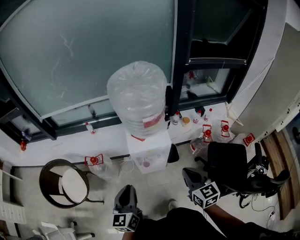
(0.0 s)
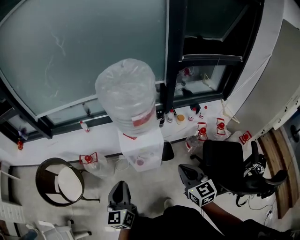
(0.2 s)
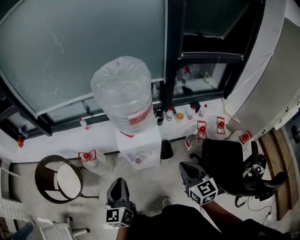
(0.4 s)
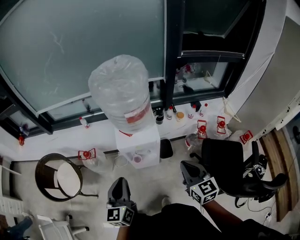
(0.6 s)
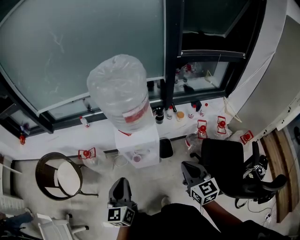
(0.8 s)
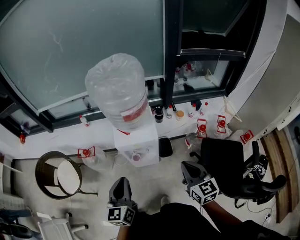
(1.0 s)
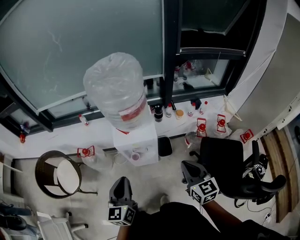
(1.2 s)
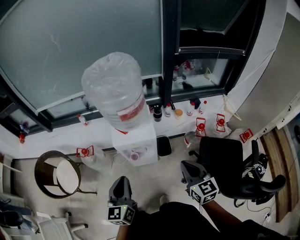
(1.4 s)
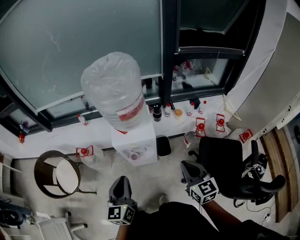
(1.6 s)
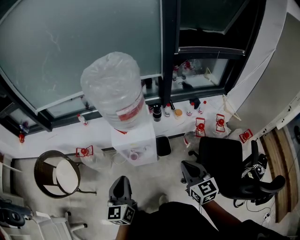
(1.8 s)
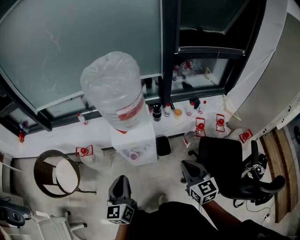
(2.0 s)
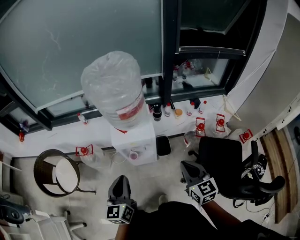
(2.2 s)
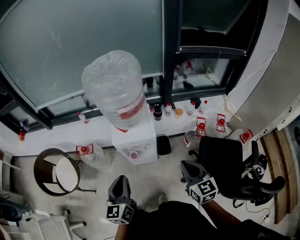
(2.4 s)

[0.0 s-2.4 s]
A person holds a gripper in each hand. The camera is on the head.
0.0 to 1.2 s: The grippers both shift to the right by some 10 cm.
1.2 to 2.4 s: Both grippers stay about where they are.

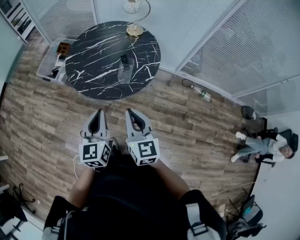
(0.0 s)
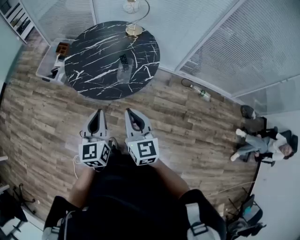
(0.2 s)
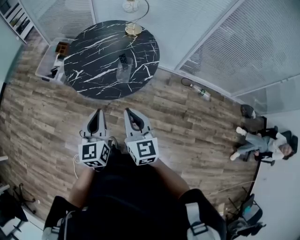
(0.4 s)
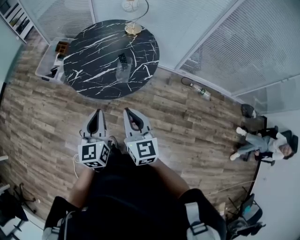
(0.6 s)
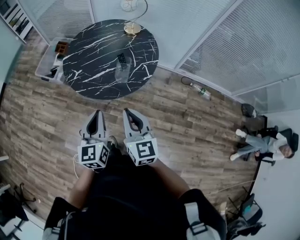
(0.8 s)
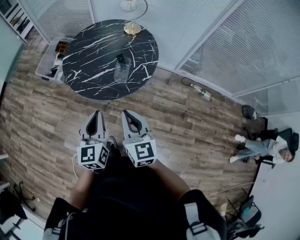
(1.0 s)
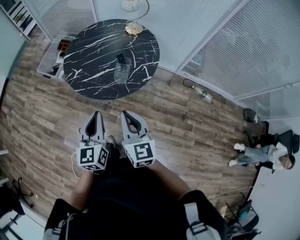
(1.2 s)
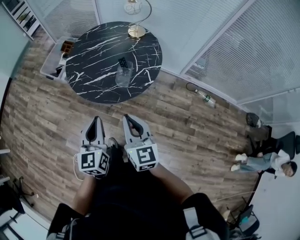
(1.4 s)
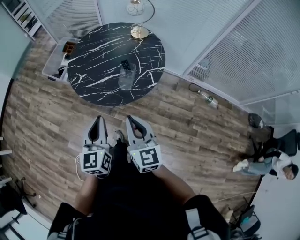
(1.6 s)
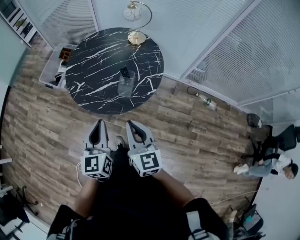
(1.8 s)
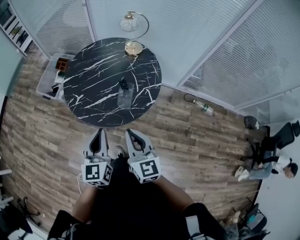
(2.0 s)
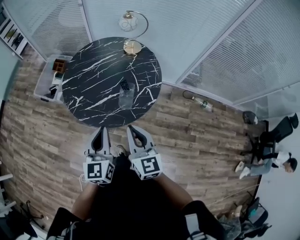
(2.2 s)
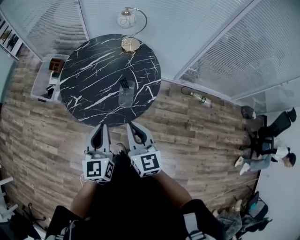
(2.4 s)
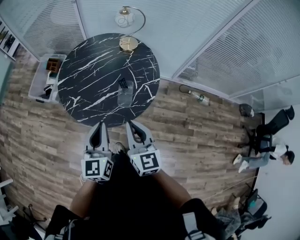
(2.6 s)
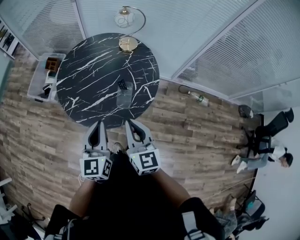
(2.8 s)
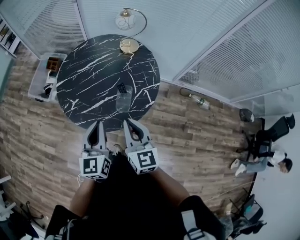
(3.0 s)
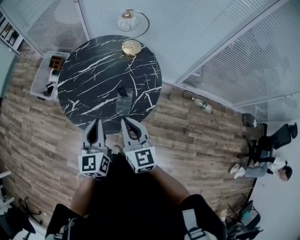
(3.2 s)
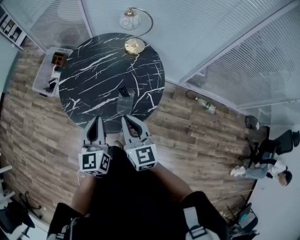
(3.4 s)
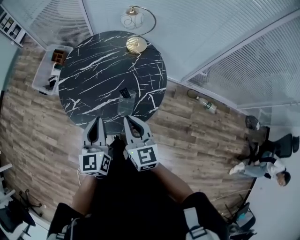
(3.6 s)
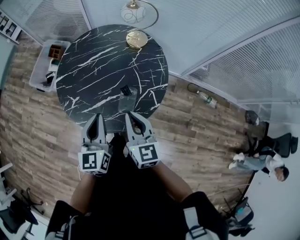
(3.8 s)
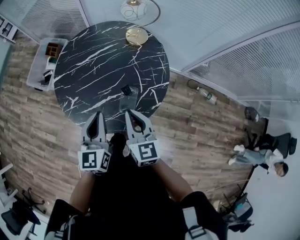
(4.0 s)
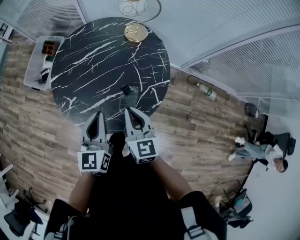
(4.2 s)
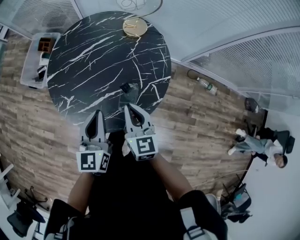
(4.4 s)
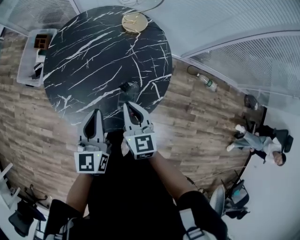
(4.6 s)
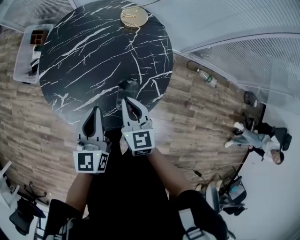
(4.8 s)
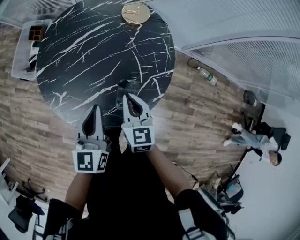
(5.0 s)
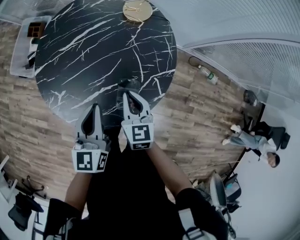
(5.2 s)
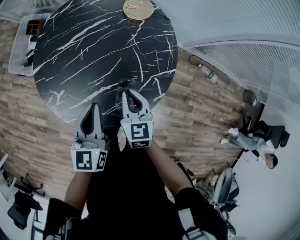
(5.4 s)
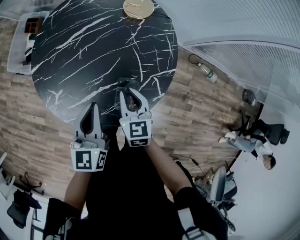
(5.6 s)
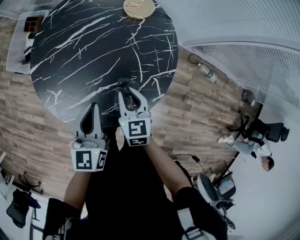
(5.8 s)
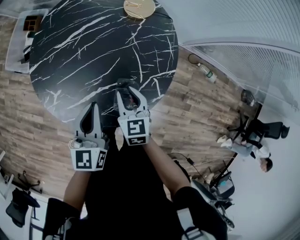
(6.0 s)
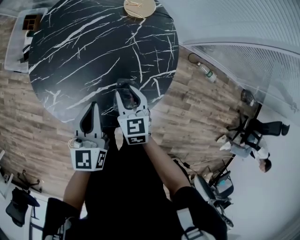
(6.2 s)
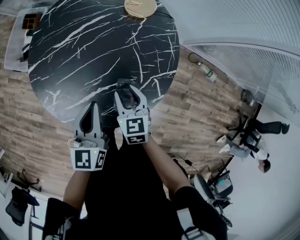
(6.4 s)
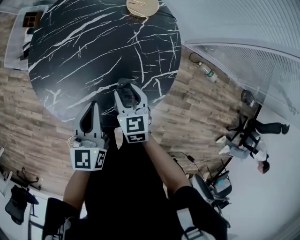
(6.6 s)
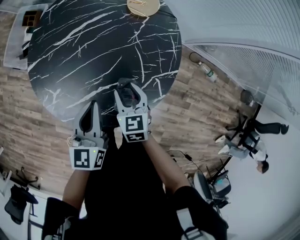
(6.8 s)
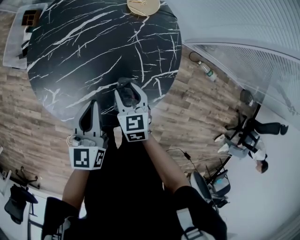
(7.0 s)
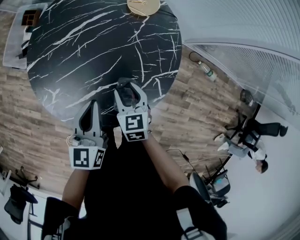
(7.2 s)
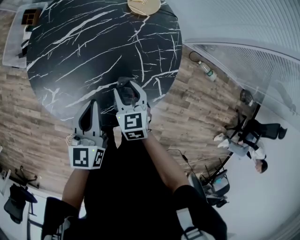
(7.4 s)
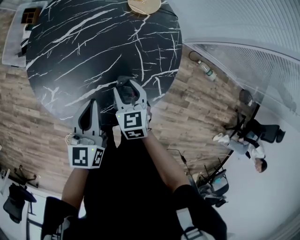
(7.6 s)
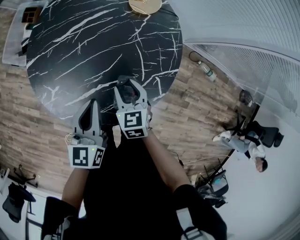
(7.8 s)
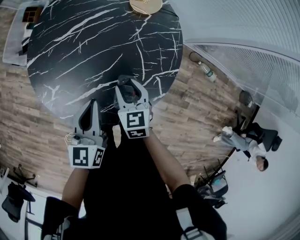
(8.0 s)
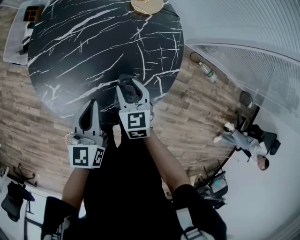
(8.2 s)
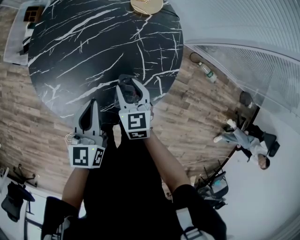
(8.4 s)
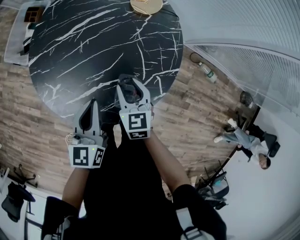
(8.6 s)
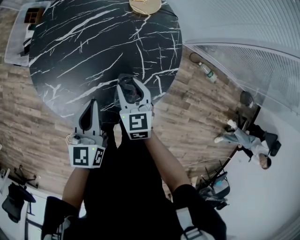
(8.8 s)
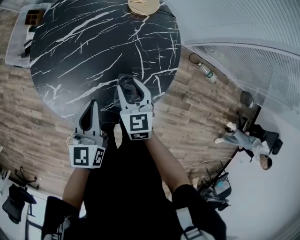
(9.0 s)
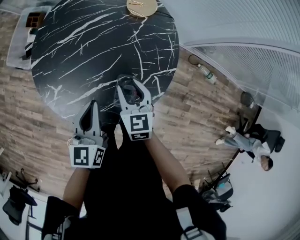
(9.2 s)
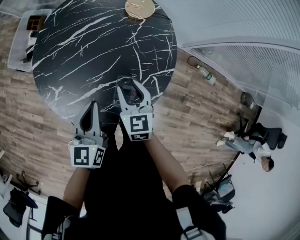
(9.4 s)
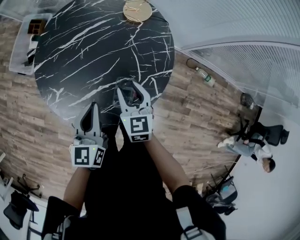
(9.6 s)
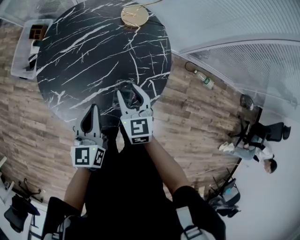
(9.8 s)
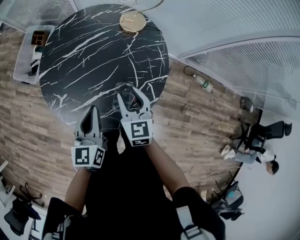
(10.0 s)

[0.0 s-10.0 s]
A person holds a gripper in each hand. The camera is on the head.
0.0 to 1.4 s: The grippers move only a little.
1.4 to 2.8 s: Both grippers travel together forward, roughly 15 cm.
2.8 to 4.2 s: The left gripper goes some 15 cm forward; the right gripper heads forward and downward, covering about 20 cm.
4.2 to 5.8 s: The grippers both shift downward and forward by roughly 15 cm. The right gripper rotates approximately 20 degrees.
5.8 to 7.2 s: The right gripper opens its fingers.
7.2 to 8.6 s: The grippers stay close to where they were, moving slightly.
8.6 to 10.0 s: The left gripper goes about 5 cm upward. Meanwhile the right gripper heads upward, covering about 10 cm.

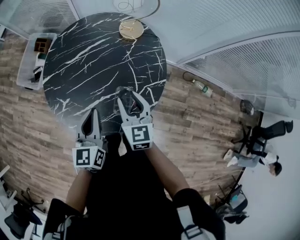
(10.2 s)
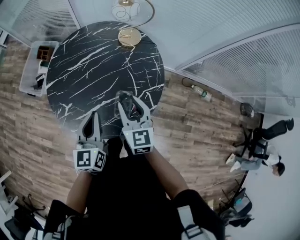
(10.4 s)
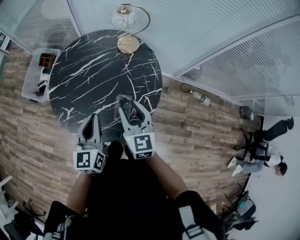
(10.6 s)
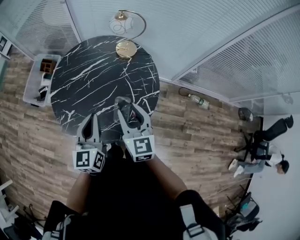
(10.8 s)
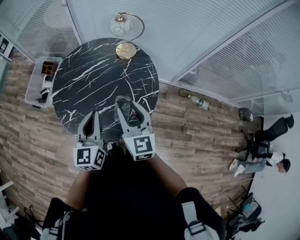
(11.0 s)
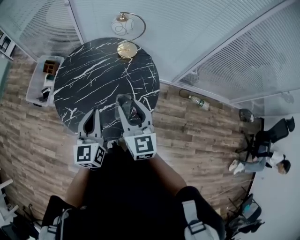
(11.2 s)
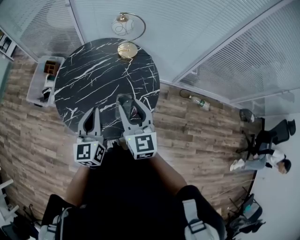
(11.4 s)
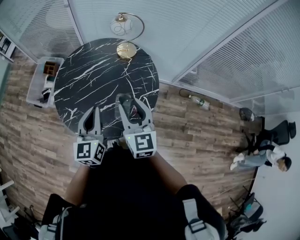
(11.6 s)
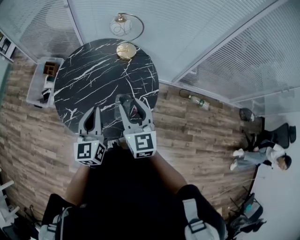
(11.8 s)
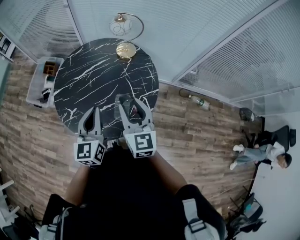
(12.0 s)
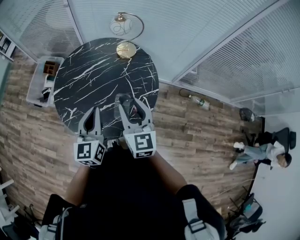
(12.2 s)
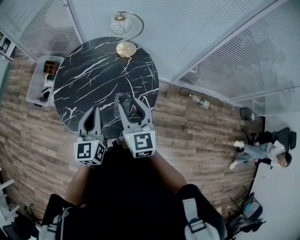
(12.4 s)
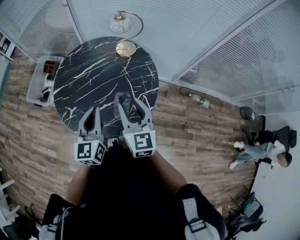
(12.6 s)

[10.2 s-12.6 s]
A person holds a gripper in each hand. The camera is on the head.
10.2 to 11.4 s: The right gripper heads upward and backward, covering some 15 cm, while the left gripper travels upward by roughly 10 cm.
11.4 to 12.6 s: Both grippers stay about where they are.

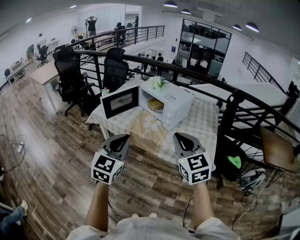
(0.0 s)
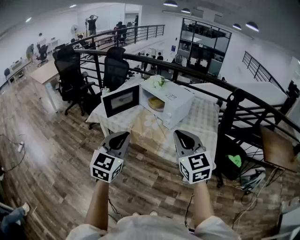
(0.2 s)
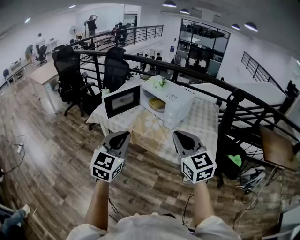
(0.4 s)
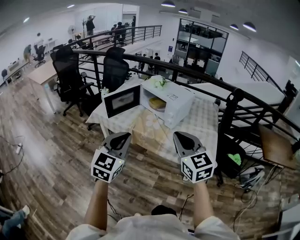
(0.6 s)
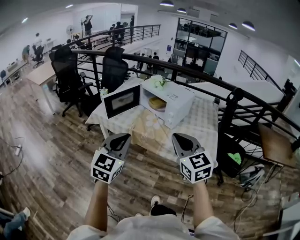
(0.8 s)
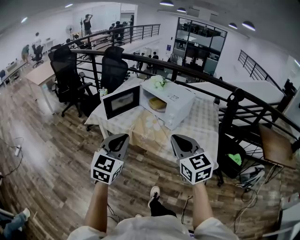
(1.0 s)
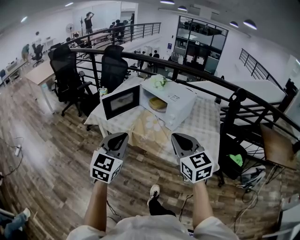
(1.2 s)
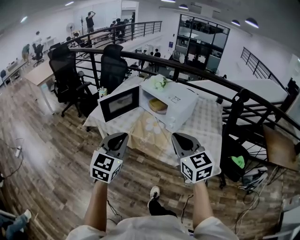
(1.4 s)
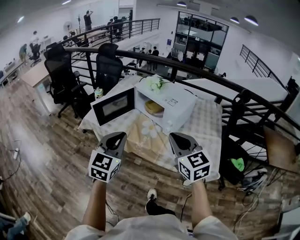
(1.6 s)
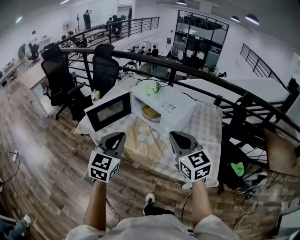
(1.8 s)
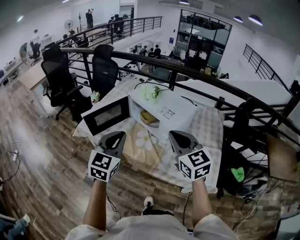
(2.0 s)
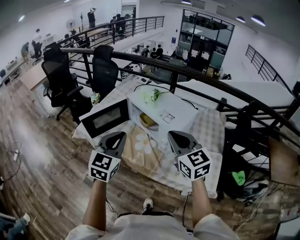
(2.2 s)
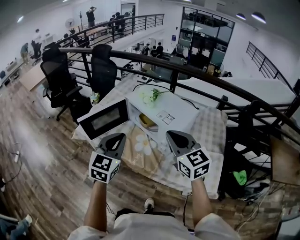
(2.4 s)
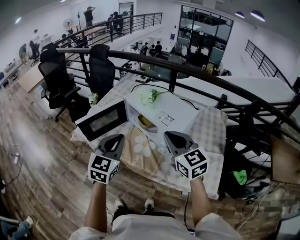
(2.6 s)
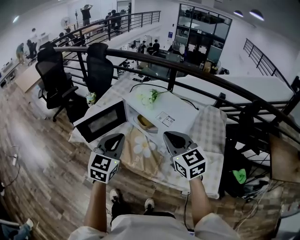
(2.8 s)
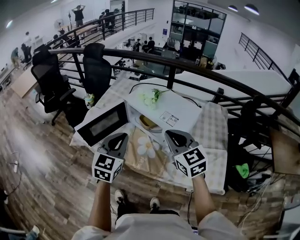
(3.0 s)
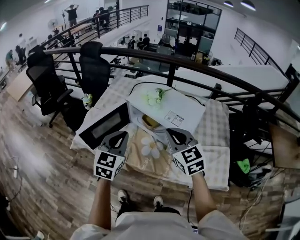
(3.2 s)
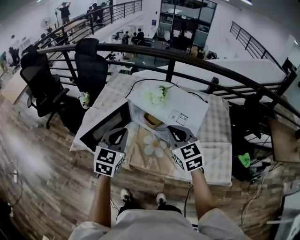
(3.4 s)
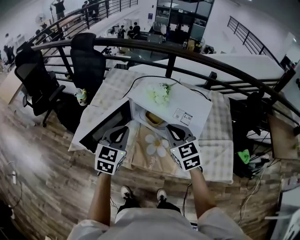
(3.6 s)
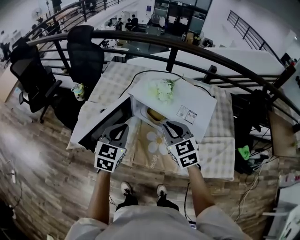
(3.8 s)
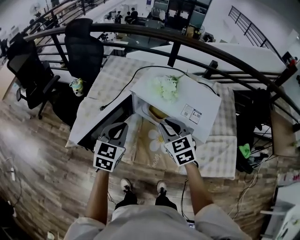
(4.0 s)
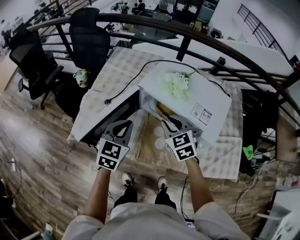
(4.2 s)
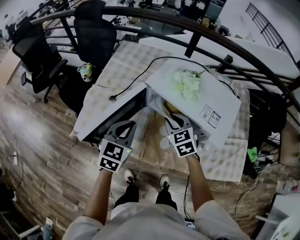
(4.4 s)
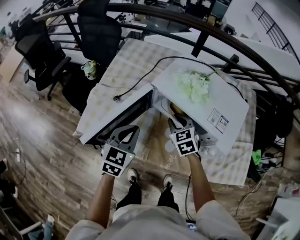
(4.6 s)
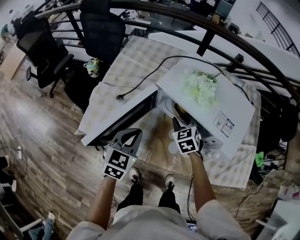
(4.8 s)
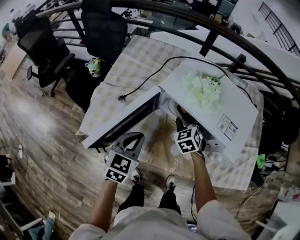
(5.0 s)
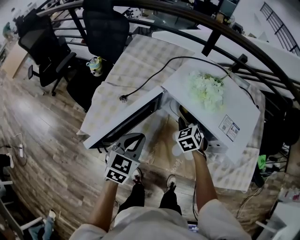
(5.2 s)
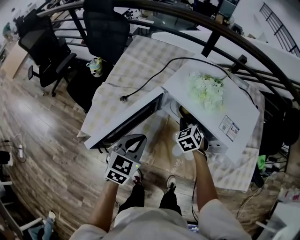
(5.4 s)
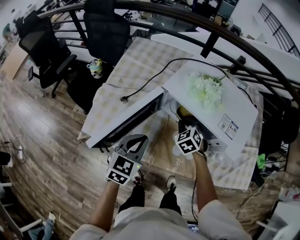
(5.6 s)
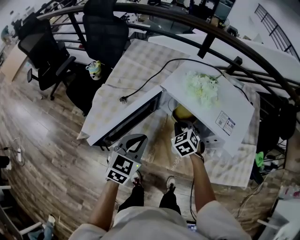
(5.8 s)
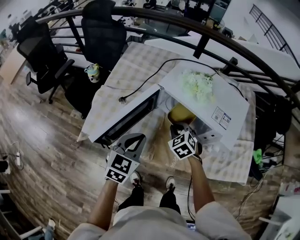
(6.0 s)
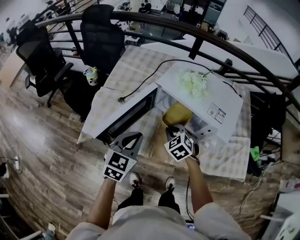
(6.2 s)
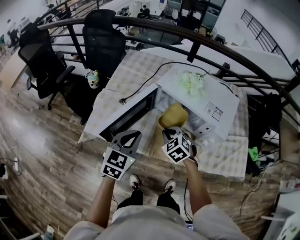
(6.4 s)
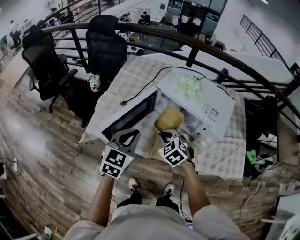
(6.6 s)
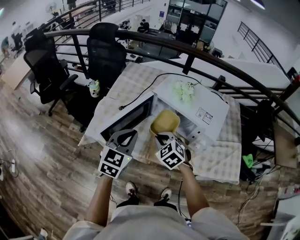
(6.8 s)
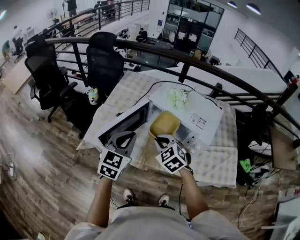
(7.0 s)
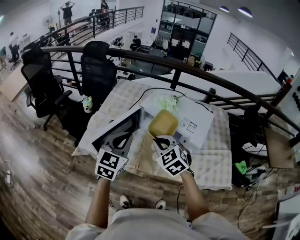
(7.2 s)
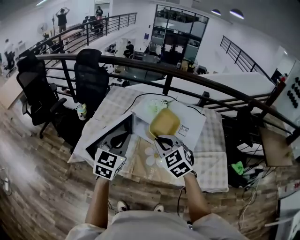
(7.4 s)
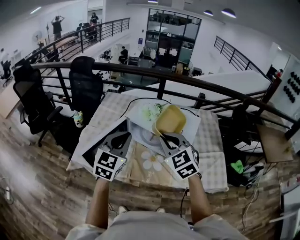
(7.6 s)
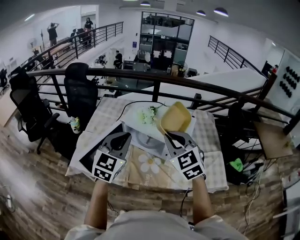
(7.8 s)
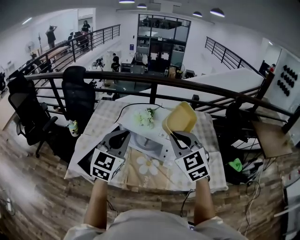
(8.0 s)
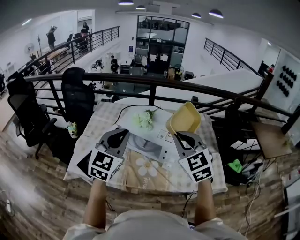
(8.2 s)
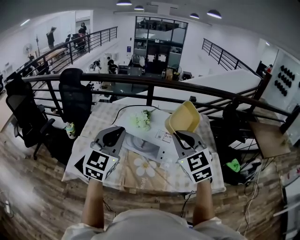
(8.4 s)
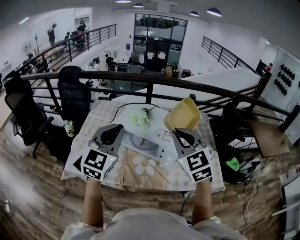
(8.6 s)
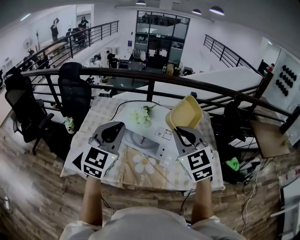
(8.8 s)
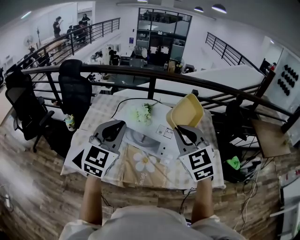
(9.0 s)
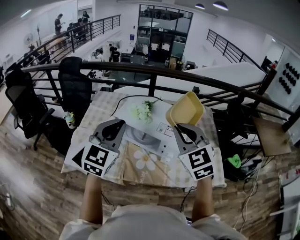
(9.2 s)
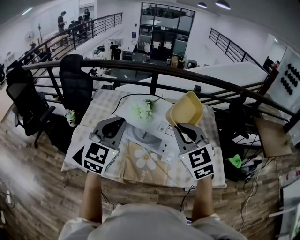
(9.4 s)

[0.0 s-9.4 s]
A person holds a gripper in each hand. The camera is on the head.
0.0 to 1.6 s: Both grippers travel together forward, some 15 cm.
1.6 to 3.2 s: The two grippers go approximately 25 cm forward.
3.2 to 4.8 s: The left gripper heads downward, forward and to the left, covering roughly 25 cm. Meanwhile the right gripper heads downward, forward and to the left, covering roughly 35 cm, turns by some 30 degrees, and opens.
4.8 to 6.2 s: The left gripper is displaced backward by some 5 cm, while the right gripper is displaced backward by about 10 cm.
6.2 to 7.8 s: The right gripper is displaced upward by approximately 30 cm, and tilts its fingers roughly 30 degrees upward. Meanwhile the left gripper goes some 25 cm upward and to the right, and swivels about 20 degrees.
7.8 to 9.4 s: The right gripper changes place by some 5 cm.
